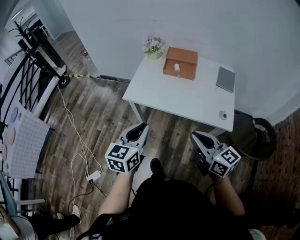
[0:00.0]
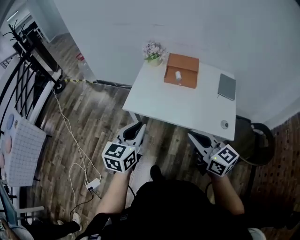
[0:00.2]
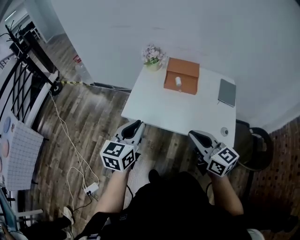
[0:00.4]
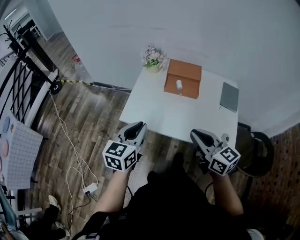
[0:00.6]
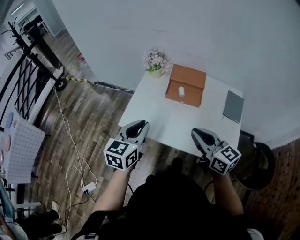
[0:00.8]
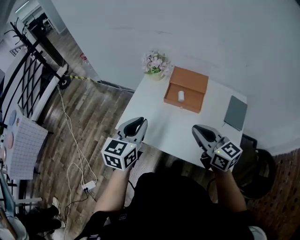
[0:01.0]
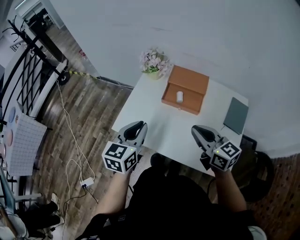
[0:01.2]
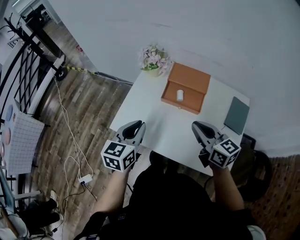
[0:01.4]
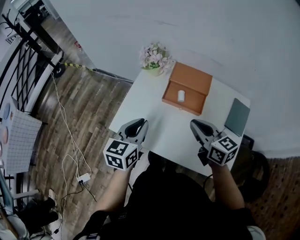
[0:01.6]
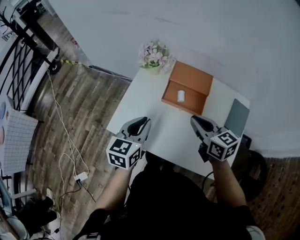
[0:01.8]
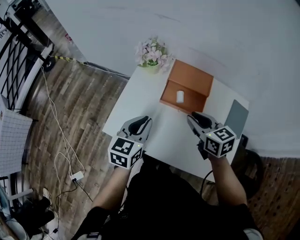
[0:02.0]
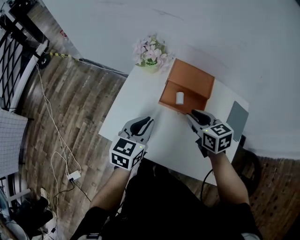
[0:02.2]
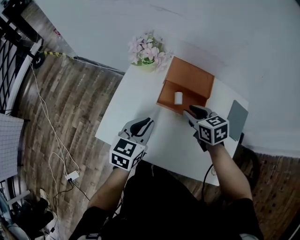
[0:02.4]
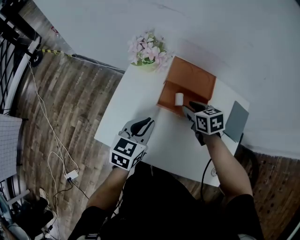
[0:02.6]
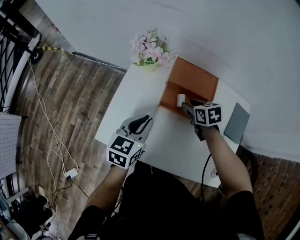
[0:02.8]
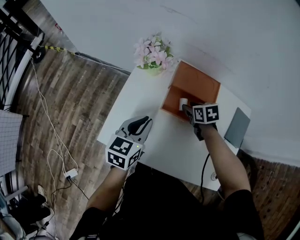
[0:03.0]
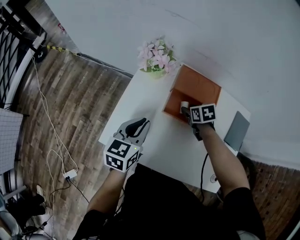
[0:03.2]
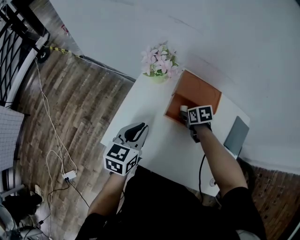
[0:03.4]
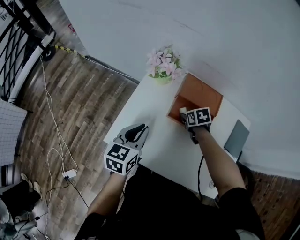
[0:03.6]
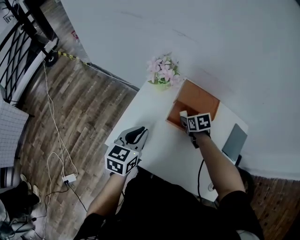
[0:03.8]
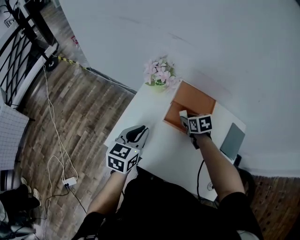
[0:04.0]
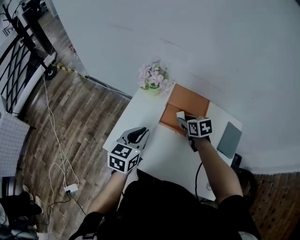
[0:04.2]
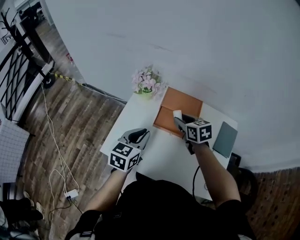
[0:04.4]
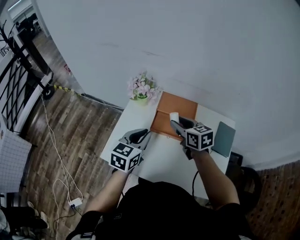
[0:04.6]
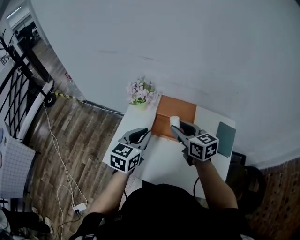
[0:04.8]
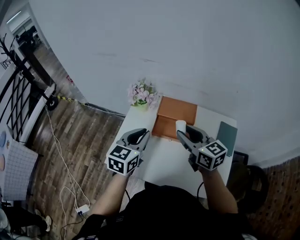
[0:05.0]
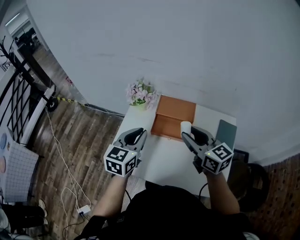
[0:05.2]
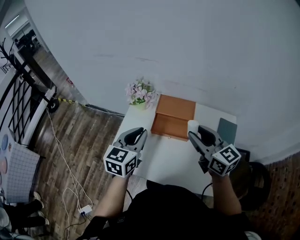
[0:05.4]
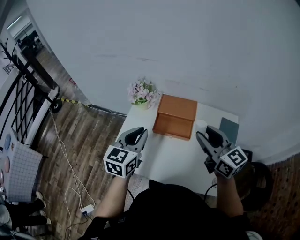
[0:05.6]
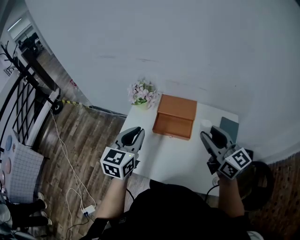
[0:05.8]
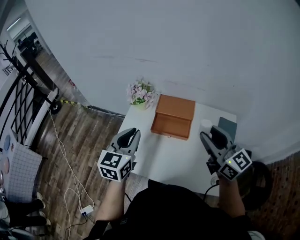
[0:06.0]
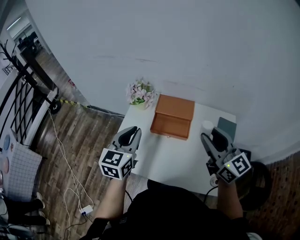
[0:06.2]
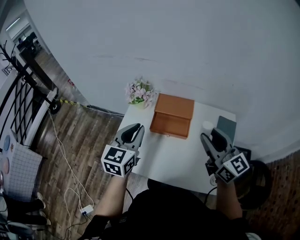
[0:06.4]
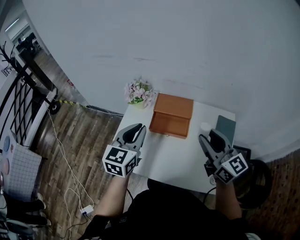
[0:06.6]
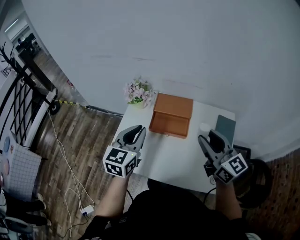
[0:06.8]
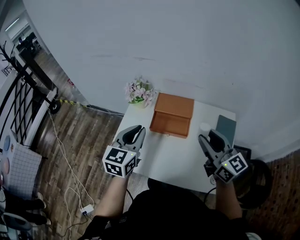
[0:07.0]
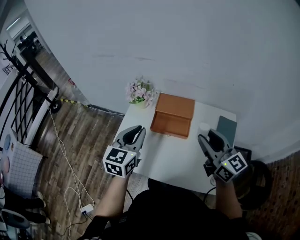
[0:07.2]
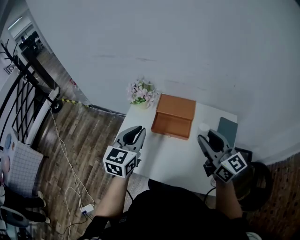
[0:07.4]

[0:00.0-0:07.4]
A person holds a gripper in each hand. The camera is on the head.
0:00.0 to 0:01.4: The two grippers go approximately 35 cm forward.
0:01.4 to 0:03.0: The right gripper shifts roughly 30 cm downward and forward, tilts its fingers roughly 50 degrees downward, and opens, while the left gripper travels forward and downward by roughly 15 cm.
0:03.0 to 0:04.4: The left gripper travels upward by roughly 5 cm. Meanwhile the right gripper goes some 15 cm upward, and changes its angle by approximately 20 degrees.
0:04.4 to 0:06.0: The right gripper travels upward, backward and to the right by roughly 30 cm, and angles its fingers upward, by about 40 degrees; the left gripper is displaced upward by approximately 10 cm.
0:06.0 to 0:07.4: The grippers stay close to where they were, moving slightly.

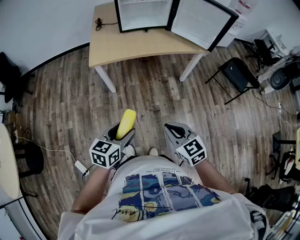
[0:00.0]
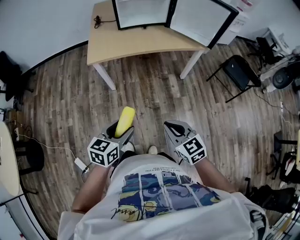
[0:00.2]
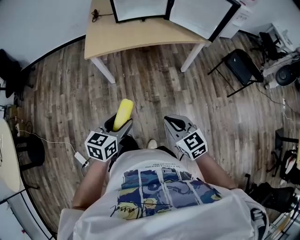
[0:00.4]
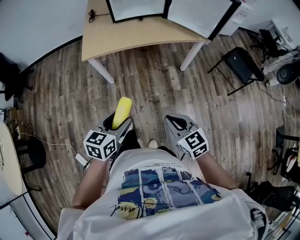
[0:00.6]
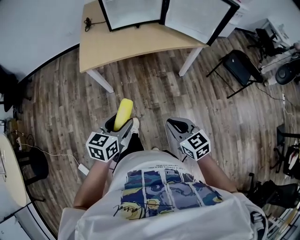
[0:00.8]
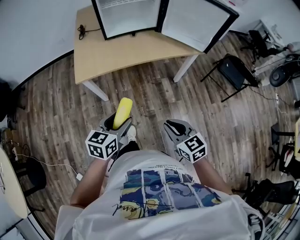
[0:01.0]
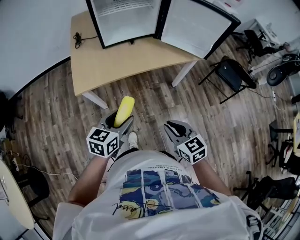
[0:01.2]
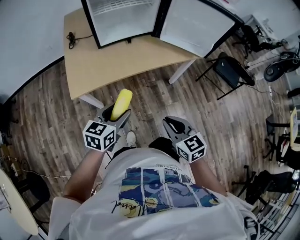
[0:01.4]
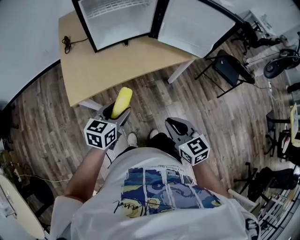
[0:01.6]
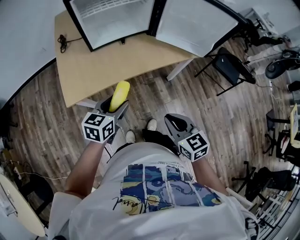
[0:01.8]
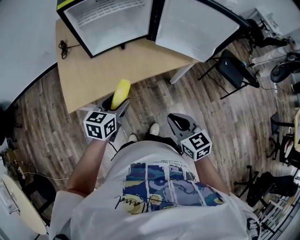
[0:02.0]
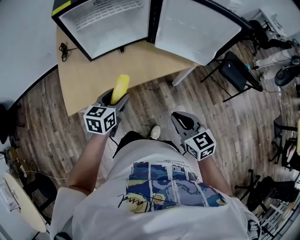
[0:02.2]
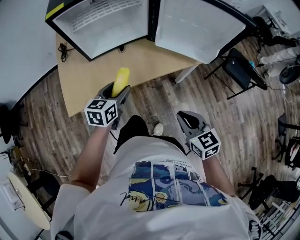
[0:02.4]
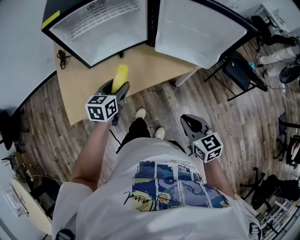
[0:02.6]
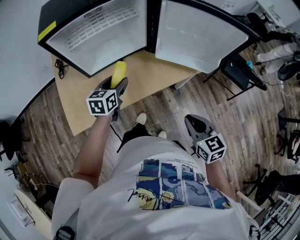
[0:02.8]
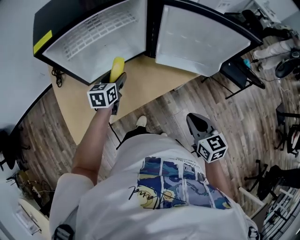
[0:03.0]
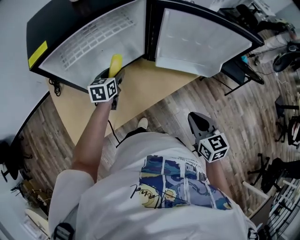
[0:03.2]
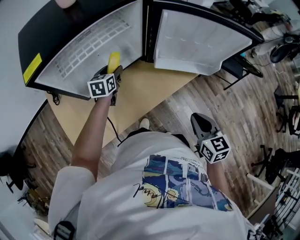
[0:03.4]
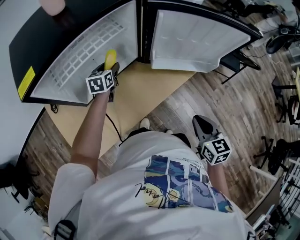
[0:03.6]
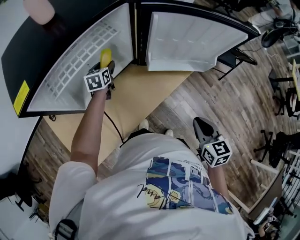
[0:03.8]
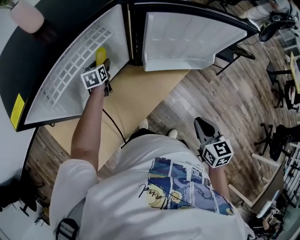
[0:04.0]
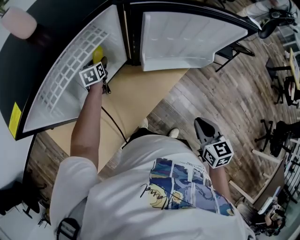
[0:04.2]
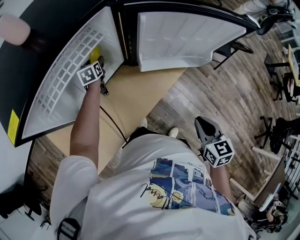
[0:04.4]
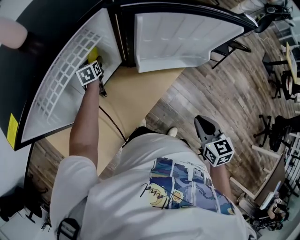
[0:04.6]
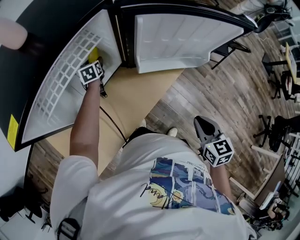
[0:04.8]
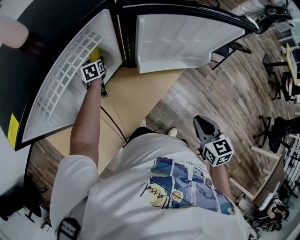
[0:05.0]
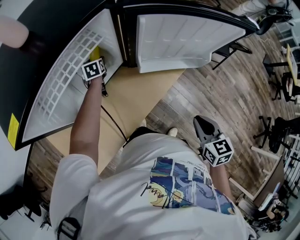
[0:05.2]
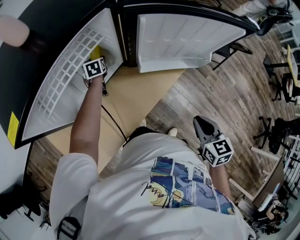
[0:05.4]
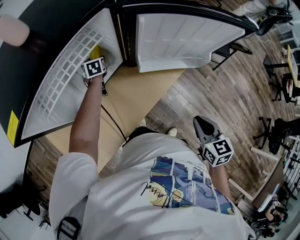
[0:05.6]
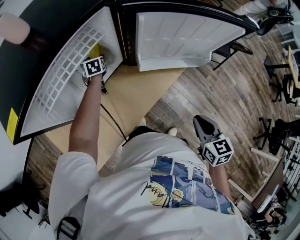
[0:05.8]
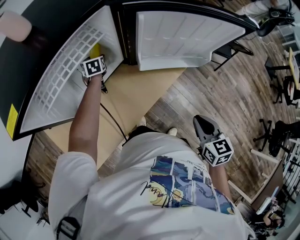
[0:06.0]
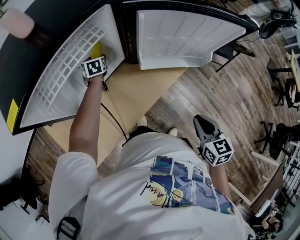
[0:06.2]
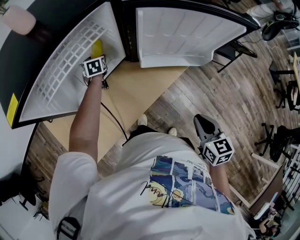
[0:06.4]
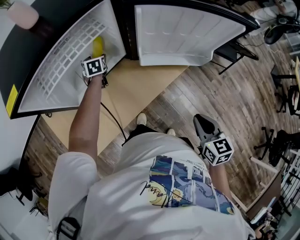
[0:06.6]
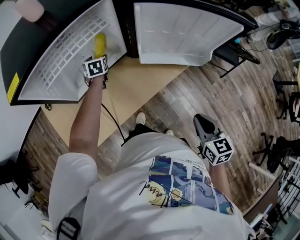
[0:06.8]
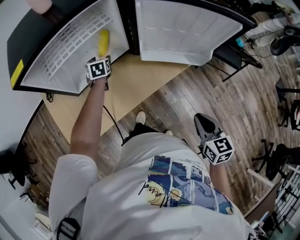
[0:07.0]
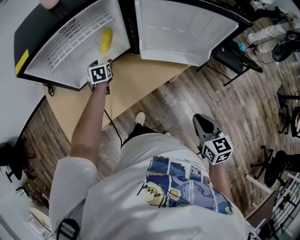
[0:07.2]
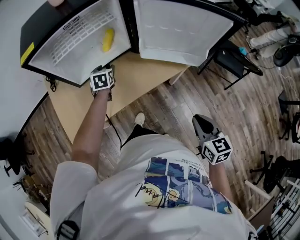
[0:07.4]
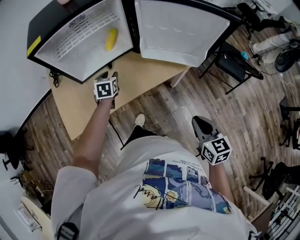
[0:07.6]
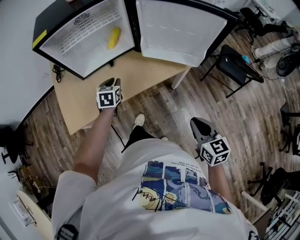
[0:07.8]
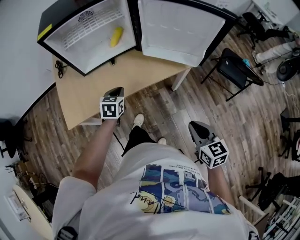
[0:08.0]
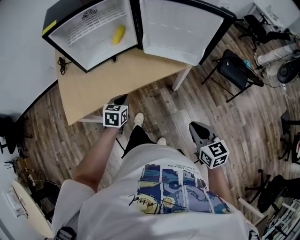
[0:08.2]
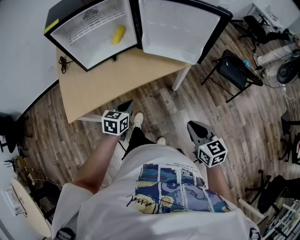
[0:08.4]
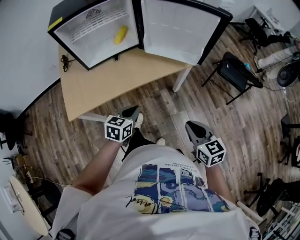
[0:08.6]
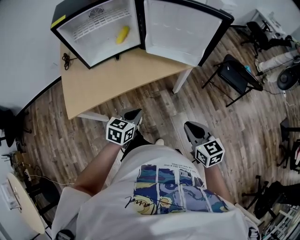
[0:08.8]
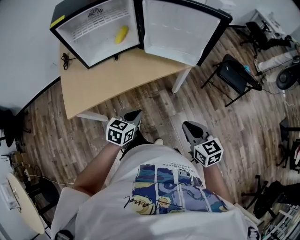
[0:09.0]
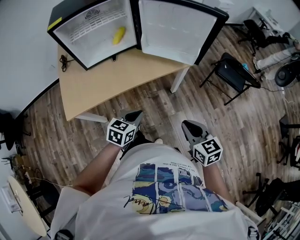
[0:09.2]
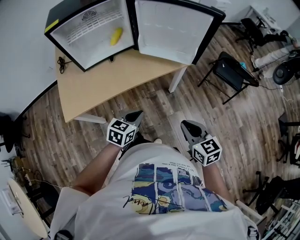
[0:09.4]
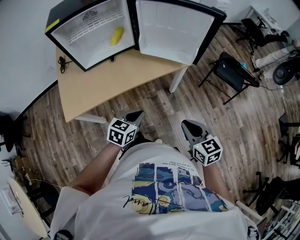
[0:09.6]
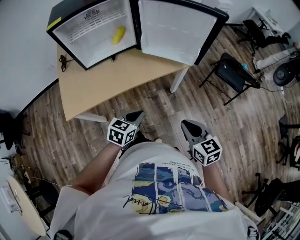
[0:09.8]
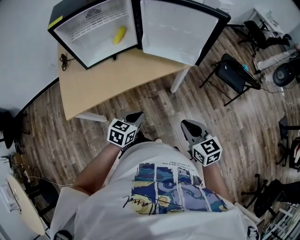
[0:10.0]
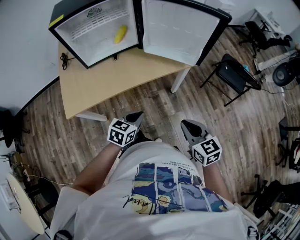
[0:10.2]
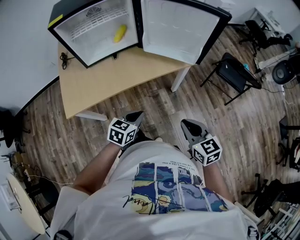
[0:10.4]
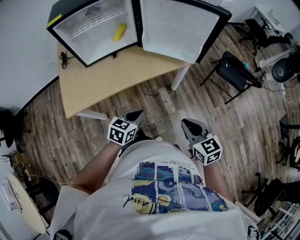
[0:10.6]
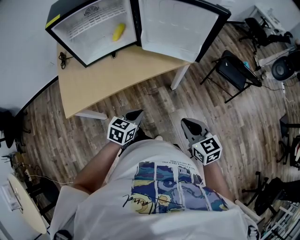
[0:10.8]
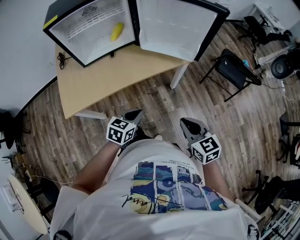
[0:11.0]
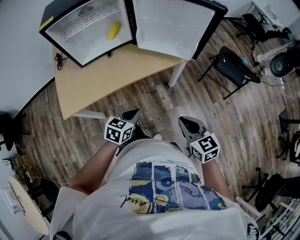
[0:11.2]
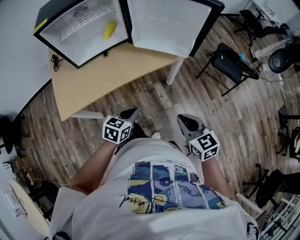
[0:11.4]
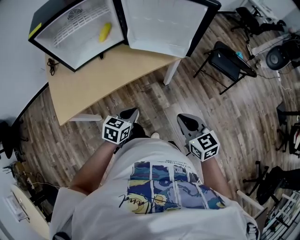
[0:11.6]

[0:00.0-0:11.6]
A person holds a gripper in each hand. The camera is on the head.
0:00.0 to 0:01.4: Both grippers move forward, approximately 25 cm.
0:01.4 to 0:02.8: The left gripper shifts approximately 35 cm forward, while the right gripper moves forward and to the right, roughly 25 cm.
0:02.8 to 0:04.4: The left gripper goes about 30 cm forward; the right gripper changes its angle by approximately 30 degrees.
0:04.4 to 0:05.8: The grippers move only a little.
0:05.8 to 0:07.2: The right gripper goes roughly 5 cm to the right; the left gripper travels backward by about 15 cm.
0:07.2 to 0:08.8: The right gripper heads backward, covering about 10 cm, while the left gripper moves backward, approximately 40 cm, turns by approximately 30 degrees, and closes its fingers.
0:08.8 to 0:11.6: The grippers stay close to where they were, moving slightly.

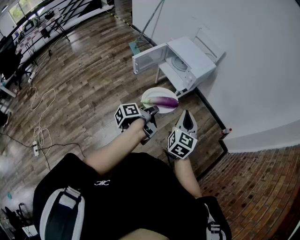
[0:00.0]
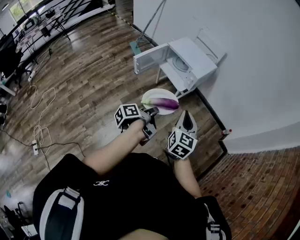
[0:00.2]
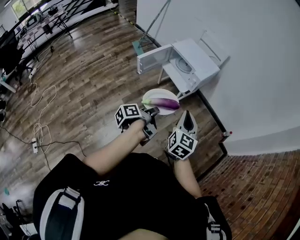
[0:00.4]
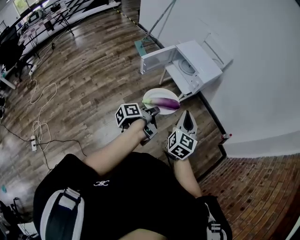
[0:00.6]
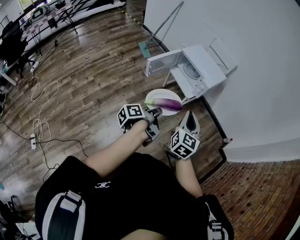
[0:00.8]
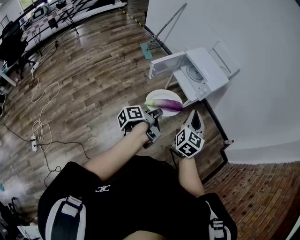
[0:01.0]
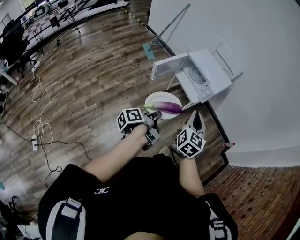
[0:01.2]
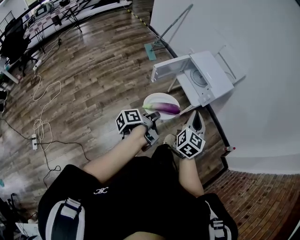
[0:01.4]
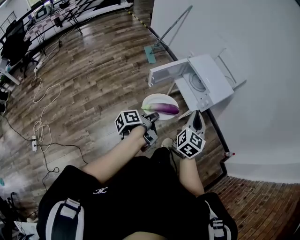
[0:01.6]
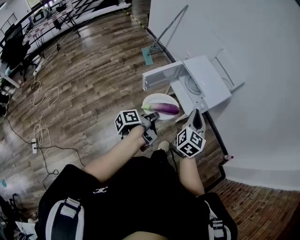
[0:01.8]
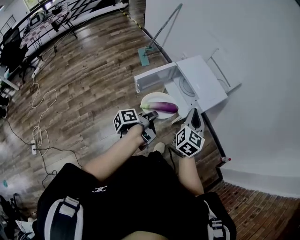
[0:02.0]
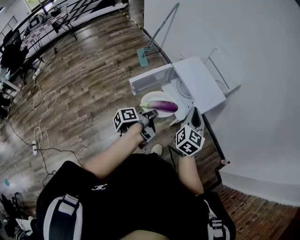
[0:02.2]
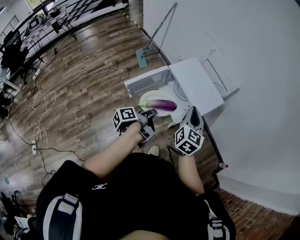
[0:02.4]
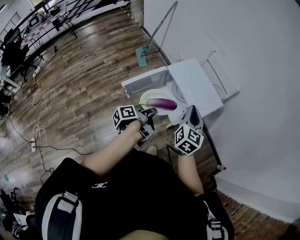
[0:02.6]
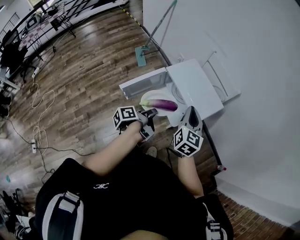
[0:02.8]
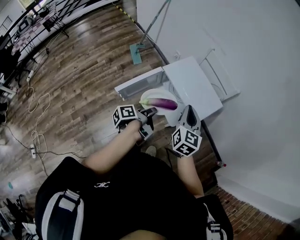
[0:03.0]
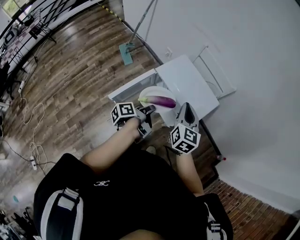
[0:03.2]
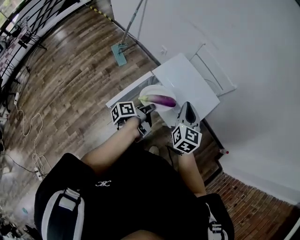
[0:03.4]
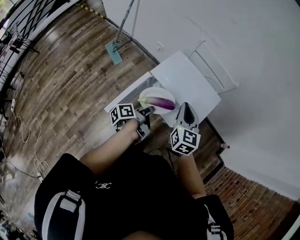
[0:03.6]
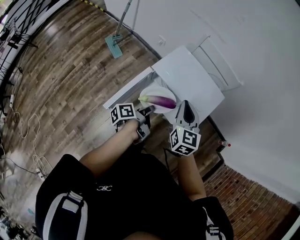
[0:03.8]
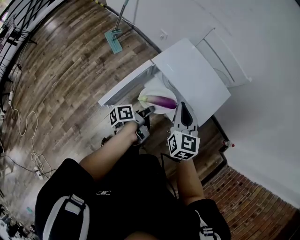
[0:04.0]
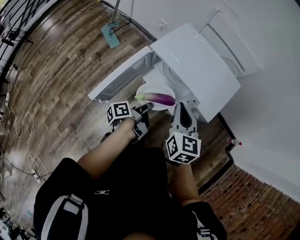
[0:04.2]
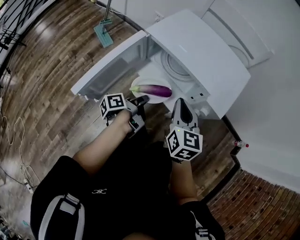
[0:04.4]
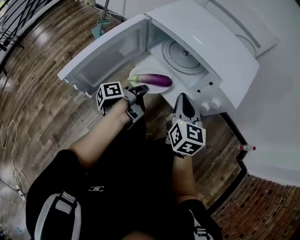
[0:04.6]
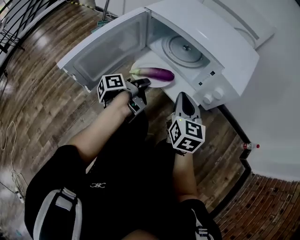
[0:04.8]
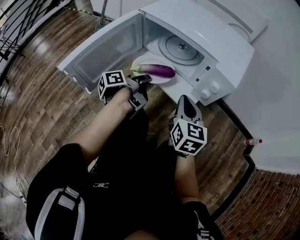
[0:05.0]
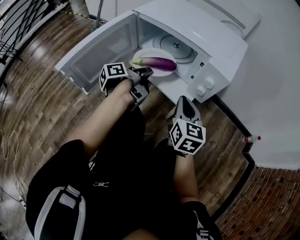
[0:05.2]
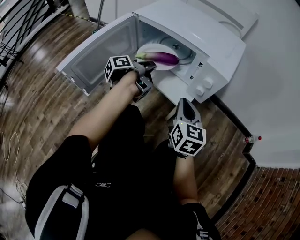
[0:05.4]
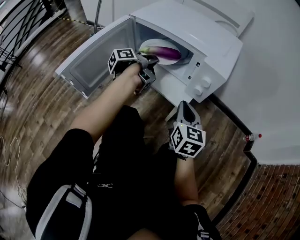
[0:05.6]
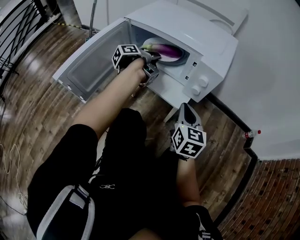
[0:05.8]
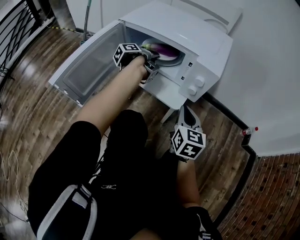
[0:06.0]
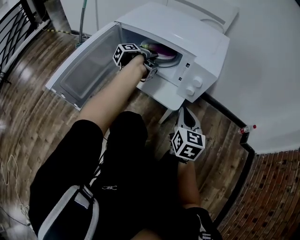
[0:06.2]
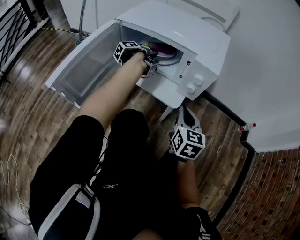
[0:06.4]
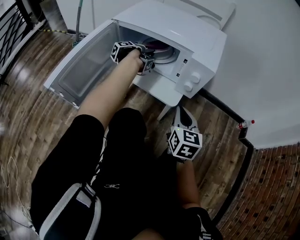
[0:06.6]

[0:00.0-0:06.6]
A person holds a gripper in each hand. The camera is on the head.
0:00.0 to 0:01.6: The right gripper ends up about 20 cm from where it was.
0:01.6 to 0:03.2: The right gripper shifts by approximately 35 cm.
0:03.2 to 0:05.0: The right gripper moves downward, approximately 40 cm.
0:05.0 to 0:06.6: The right gripper changes place by approximately 5 cm.
